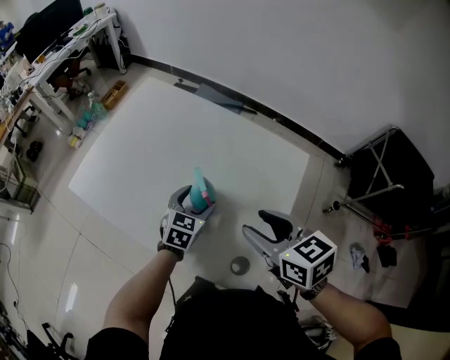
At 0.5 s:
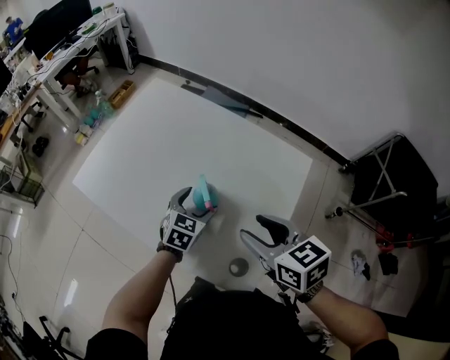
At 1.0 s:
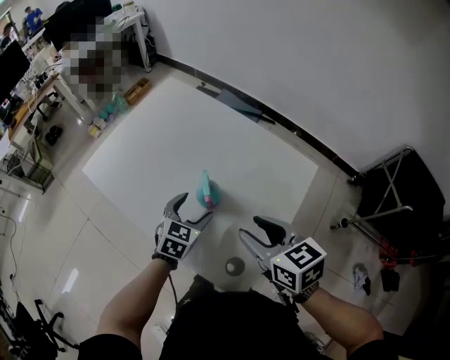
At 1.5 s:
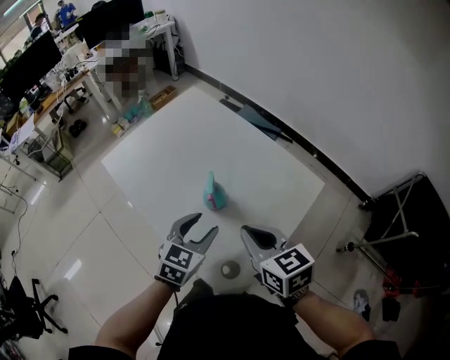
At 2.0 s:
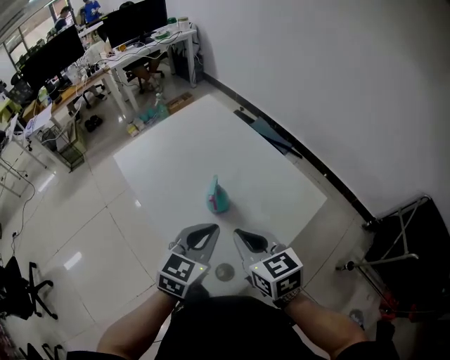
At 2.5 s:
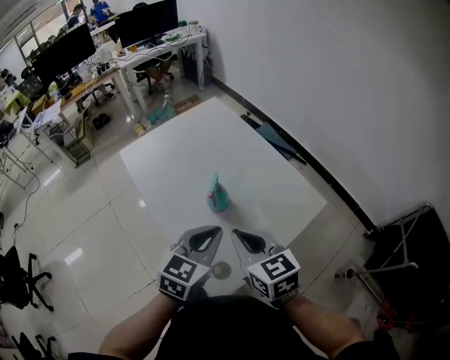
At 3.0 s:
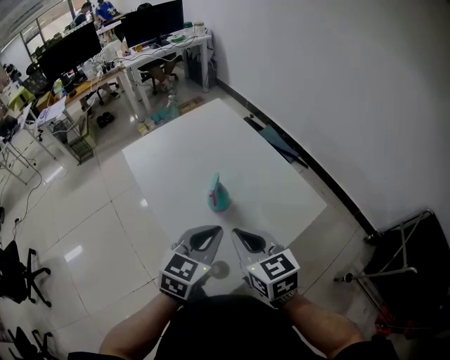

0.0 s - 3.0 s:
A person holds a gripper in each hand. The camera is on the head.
0.0 s - 1.5 s: The right gripper closes its fingers. Meanwhile the left gripper moves upward and backward, roughly 15 cm.
1.5 s - 3.0 s: The left gripper heads upward, covering some 10 cm, and closes up.

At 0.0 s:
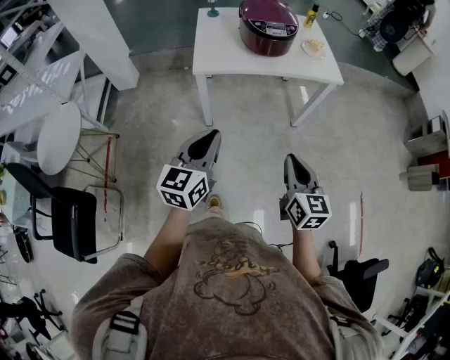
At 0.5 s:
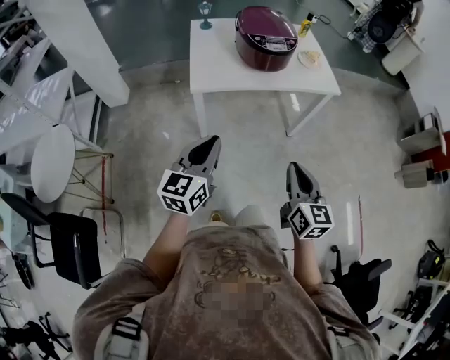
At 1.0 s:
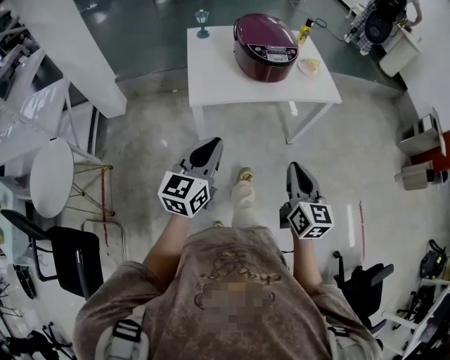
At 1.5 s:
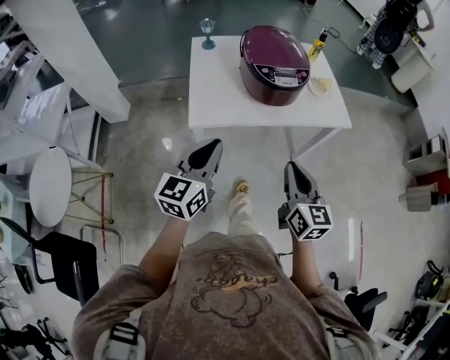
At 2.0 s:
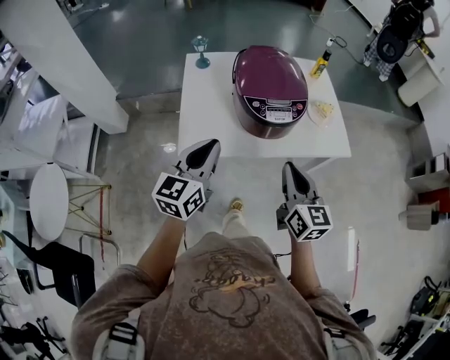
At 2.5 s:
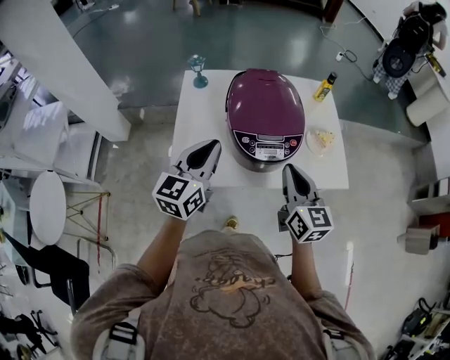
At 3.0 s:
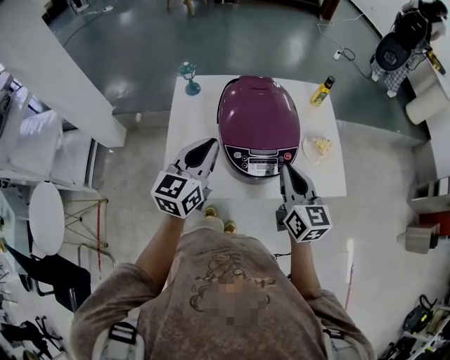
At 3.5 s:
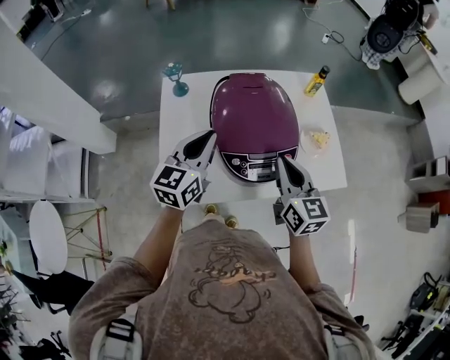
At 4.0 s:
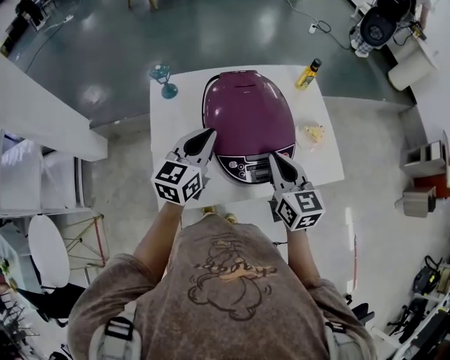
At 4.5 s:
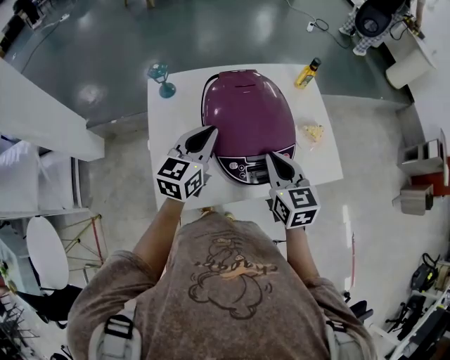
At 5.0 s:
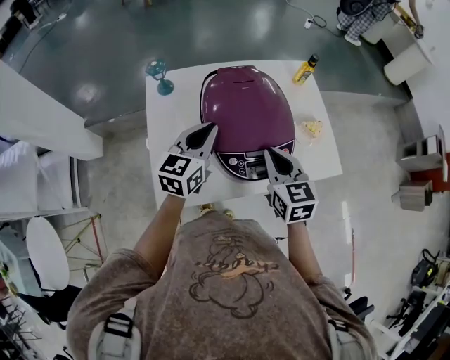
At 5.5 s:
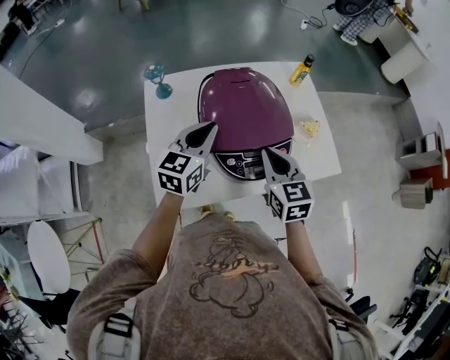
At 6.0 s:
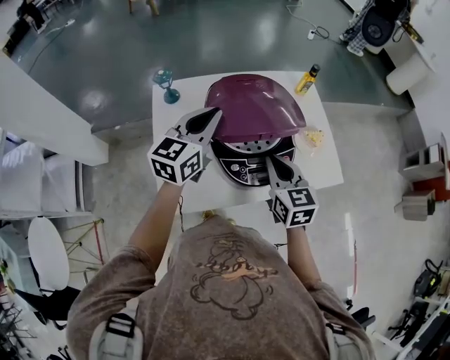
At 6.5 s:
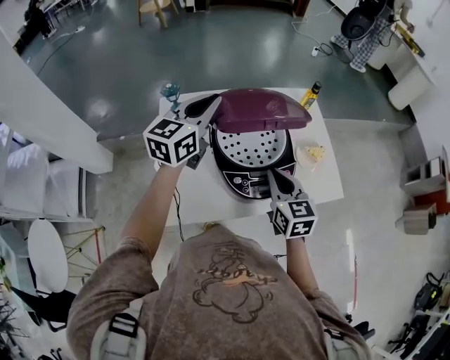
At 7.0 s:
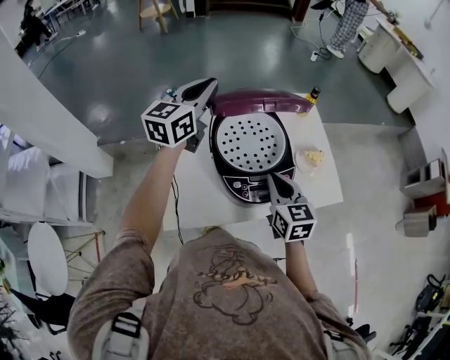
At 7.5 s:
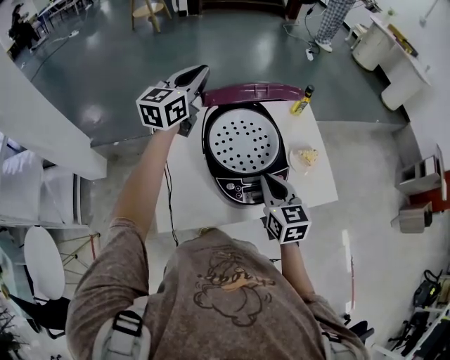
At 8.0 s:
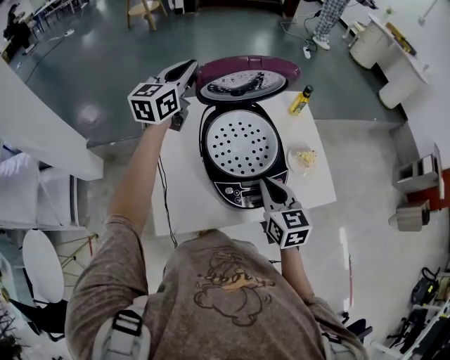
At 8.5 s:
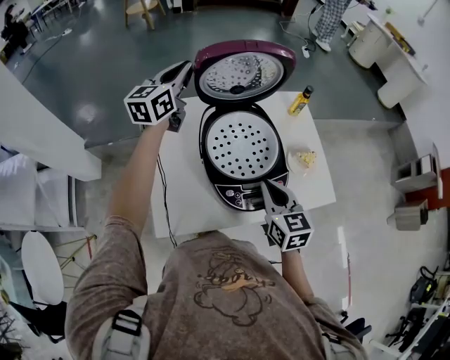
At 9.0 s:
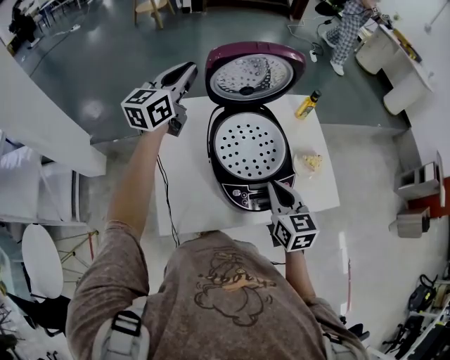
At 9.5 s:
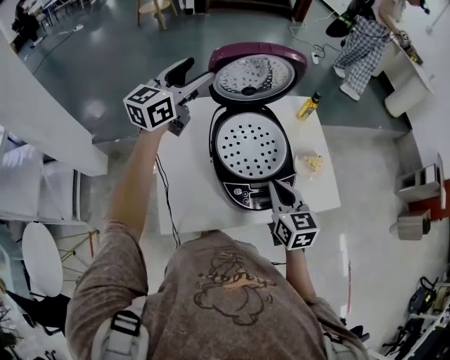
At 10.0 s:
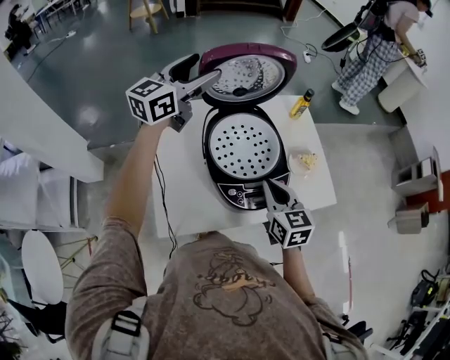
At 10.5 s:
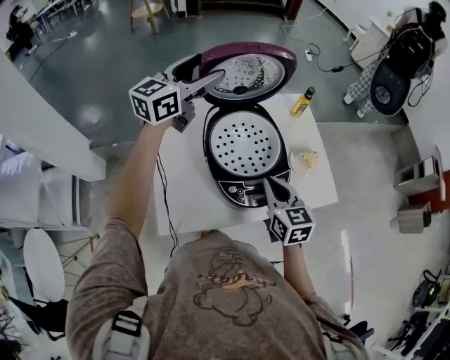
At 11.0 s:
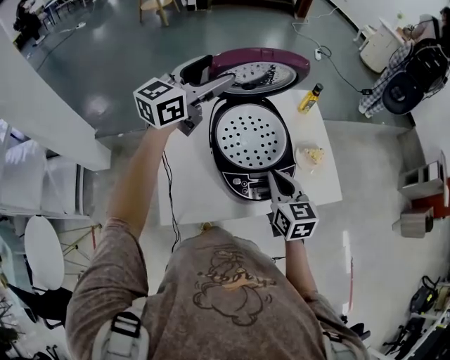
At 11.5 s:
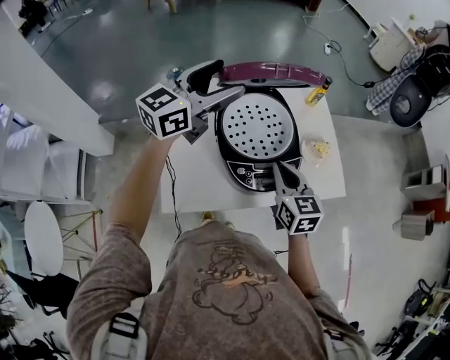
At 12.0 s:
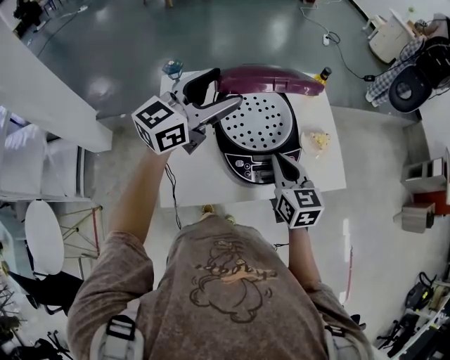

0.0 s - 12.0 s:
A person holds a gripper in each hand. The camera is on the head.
0.0 s - 2.0 s: Both grippers travel together forward, roughly 35 cm.
2.0 s - 4.0 s: The two grippers go roughly 25 cm forward.
4.0 s - 6.0 s: The left gripper goes about 5 cm upward.
6.0 s - 8.0 s: The left gripper is displaced forward, to the left and upward by roughly 20 cm.
8.0 s - 10.0 s: The left gripper ends up approximately 5 cm from where it was, and opens.
10.0 s - 12.0 s: The left gripper moves backward and to the right, some 15 cm.

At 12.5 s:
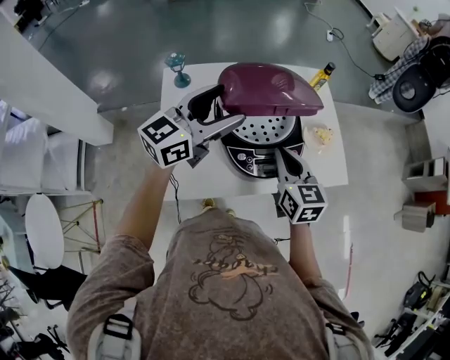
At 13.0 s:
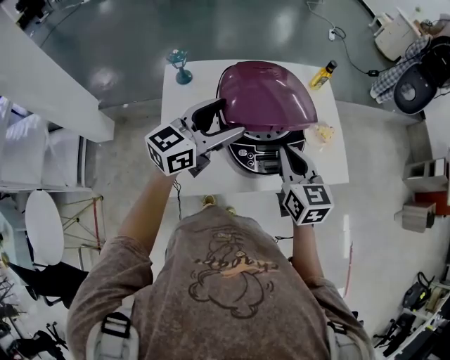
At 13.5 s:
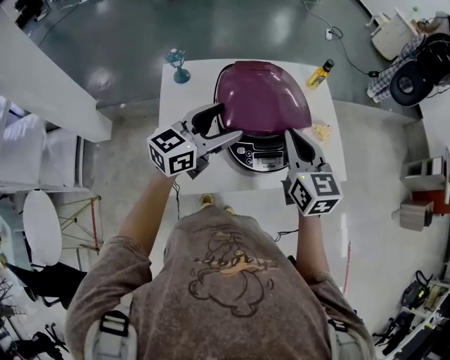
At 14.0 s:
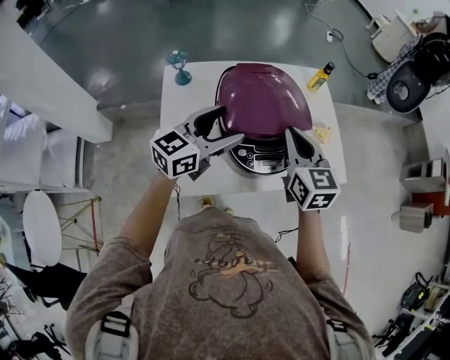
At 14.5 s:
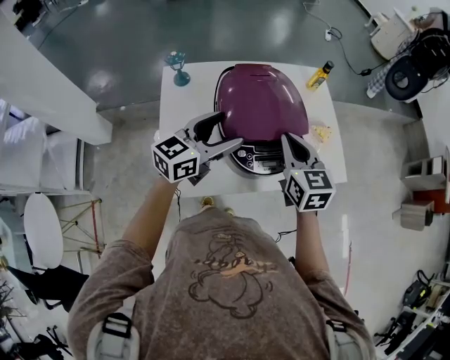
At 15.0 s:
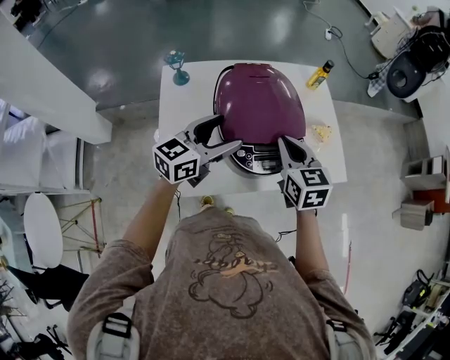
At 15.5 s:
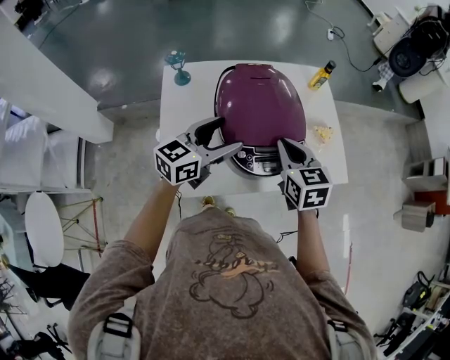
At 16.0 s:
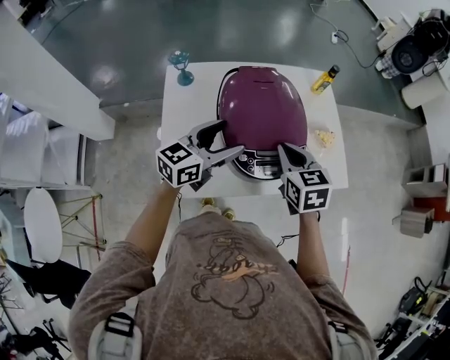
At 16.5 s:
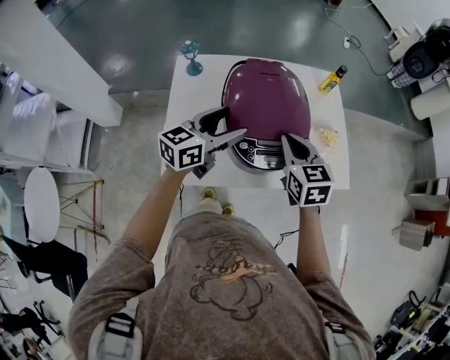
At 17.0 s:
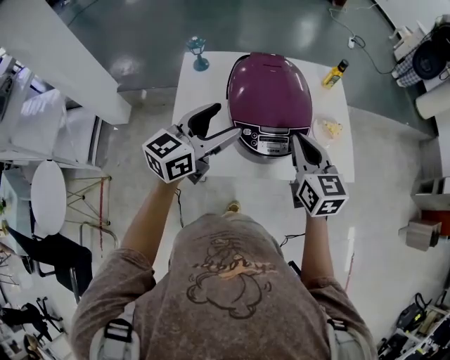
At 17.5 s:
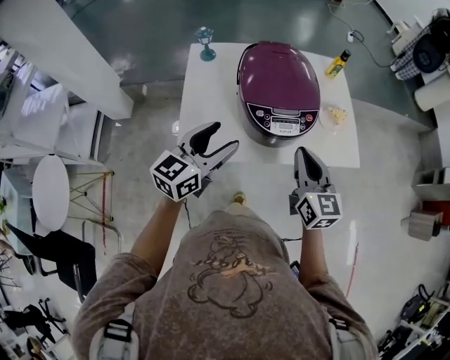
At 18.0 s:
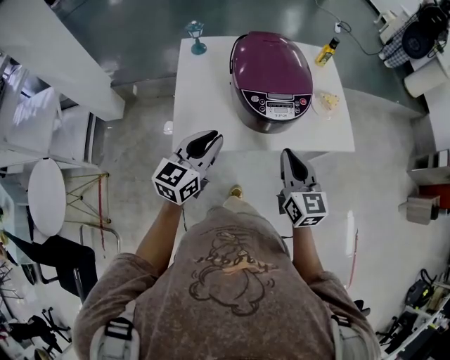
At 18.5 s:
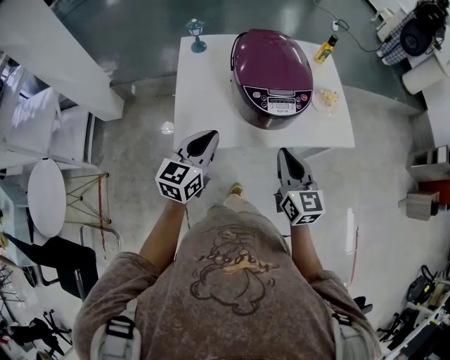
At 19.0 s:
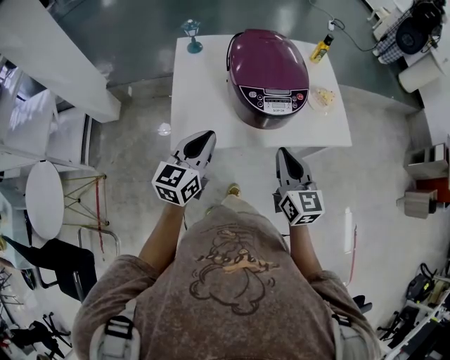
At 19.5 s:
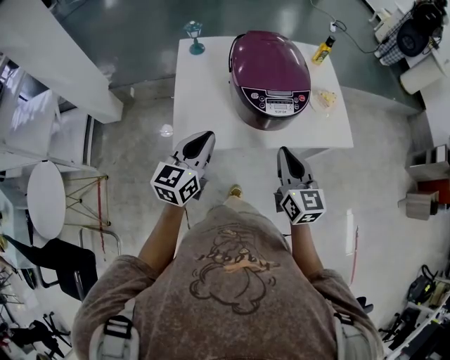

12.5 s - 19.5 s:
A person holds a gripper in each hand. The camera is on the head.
12.5 s - 14.5 s: The left gripper shifts some 10 cm downward.
14.5 s - 16.0 s: The grippers move only a little.
16.0 s - 17.5 s: The two grippers go about 15 cm backward. The right gripper turns by roughly 30 degrees.
17.5 s - 19.5 s: The right gripper moves backward, some 5 cm, while the left gripper moves some 5 cm, and closes its fingers.

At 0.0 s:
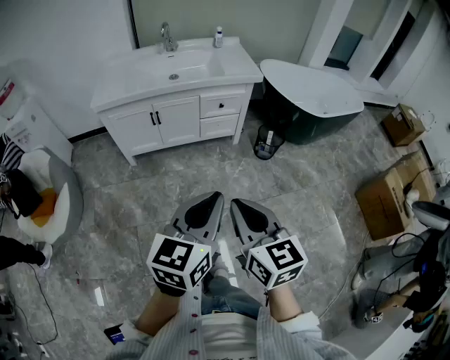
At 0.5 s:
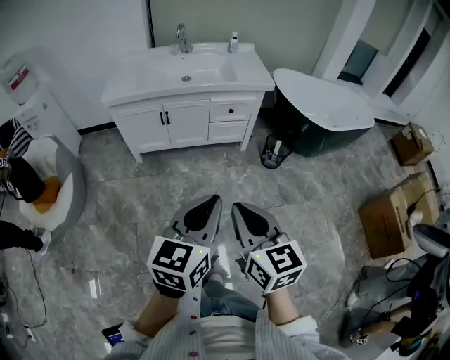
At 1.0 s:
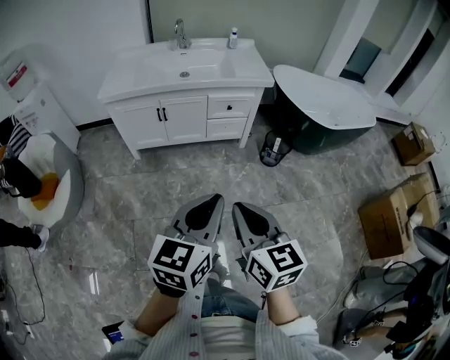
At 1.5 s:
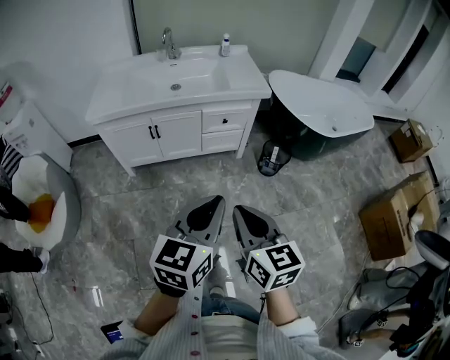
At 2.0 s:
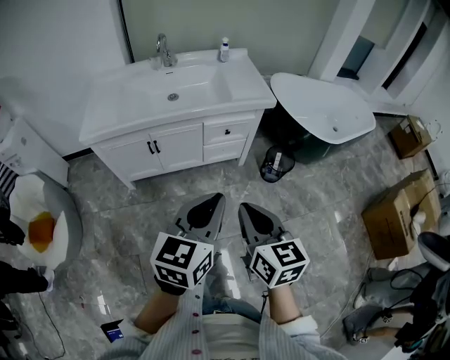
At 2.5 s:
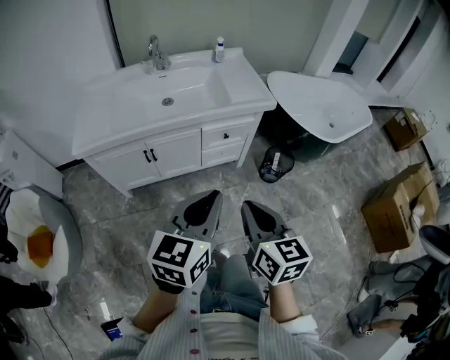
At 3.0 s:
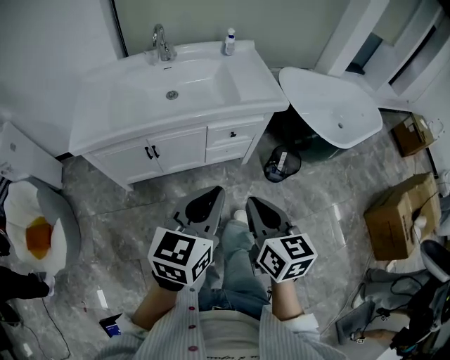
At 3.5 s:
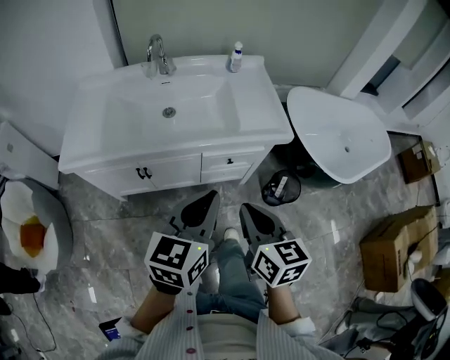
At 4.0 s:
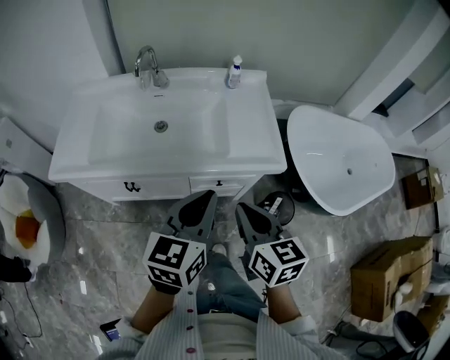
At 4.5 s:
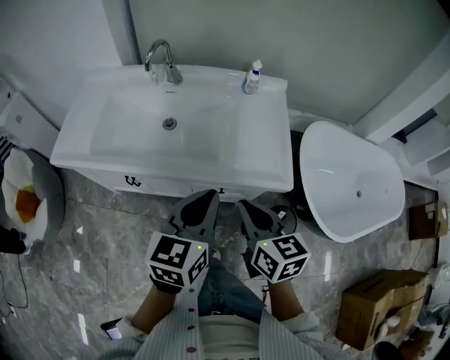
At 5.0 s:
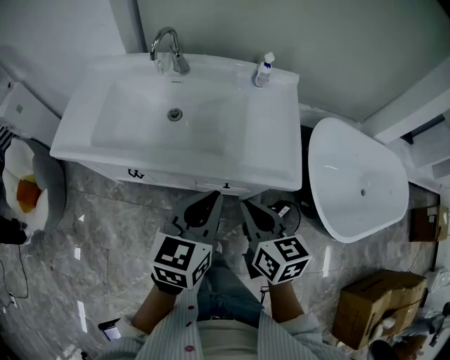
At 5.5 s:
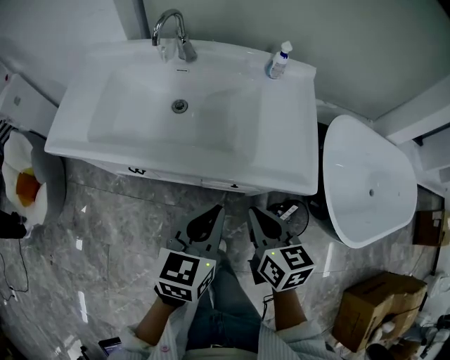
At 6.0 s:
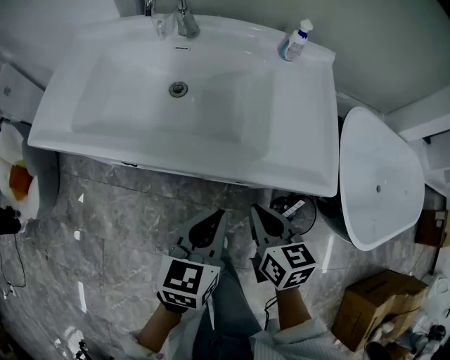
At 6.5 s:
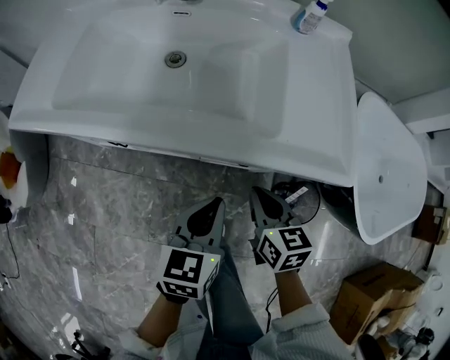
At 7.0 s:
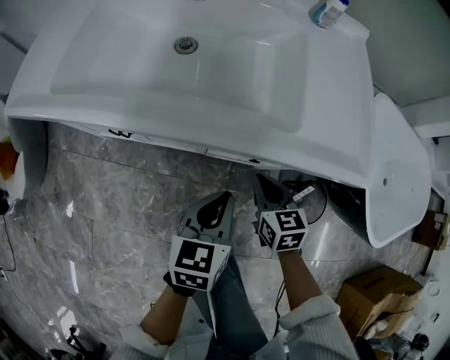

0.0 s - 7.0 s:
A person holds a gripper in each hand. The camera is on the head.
0.0 s - 2.0 s: The two grippers go some 20 cm forward.
2.0 s - 3.5 s: The grippers both shift forward by roughly 25 cm.
3.5 s - 5.0 s: Both grippers travel together forward and to the right, roughly 15 cm.
5.0 s - 7.0 s: The two grippers go some 30 cm downward.
